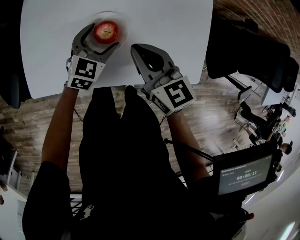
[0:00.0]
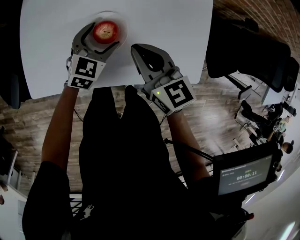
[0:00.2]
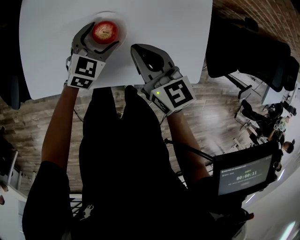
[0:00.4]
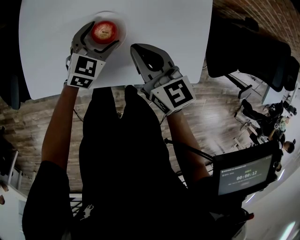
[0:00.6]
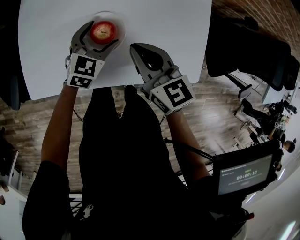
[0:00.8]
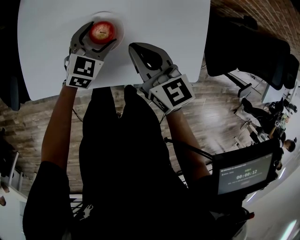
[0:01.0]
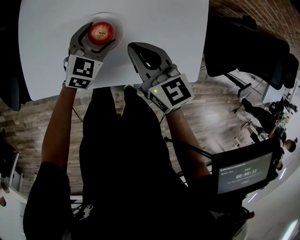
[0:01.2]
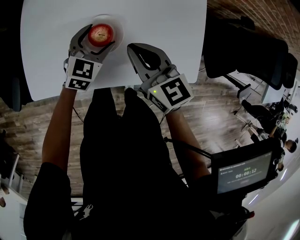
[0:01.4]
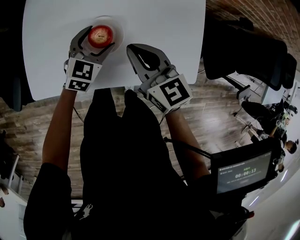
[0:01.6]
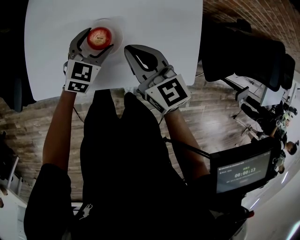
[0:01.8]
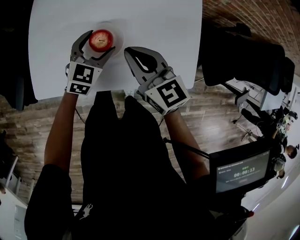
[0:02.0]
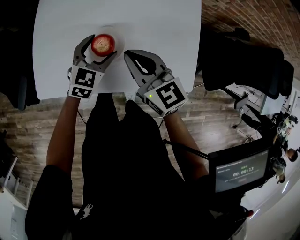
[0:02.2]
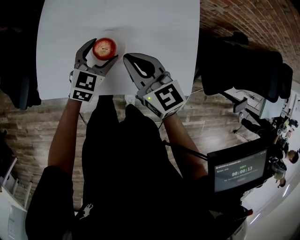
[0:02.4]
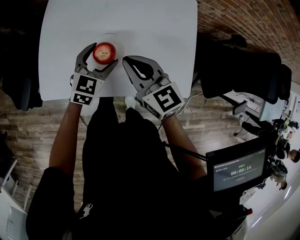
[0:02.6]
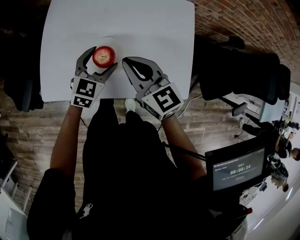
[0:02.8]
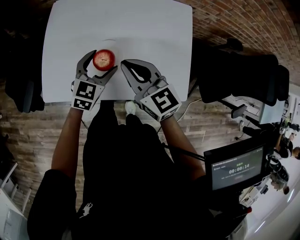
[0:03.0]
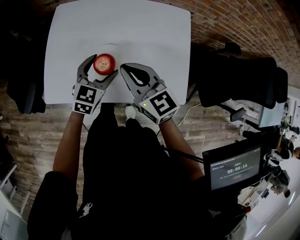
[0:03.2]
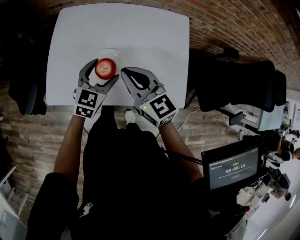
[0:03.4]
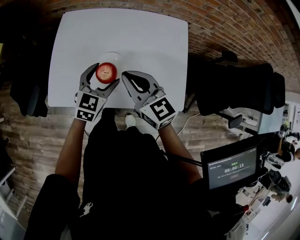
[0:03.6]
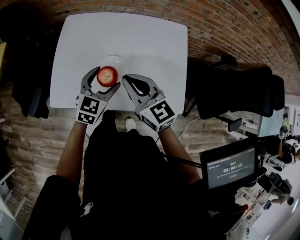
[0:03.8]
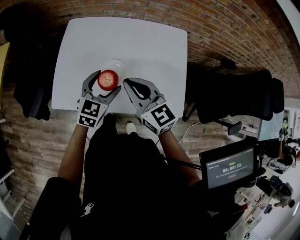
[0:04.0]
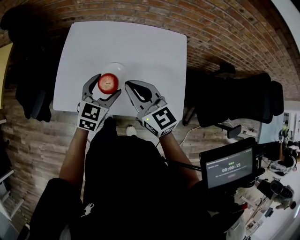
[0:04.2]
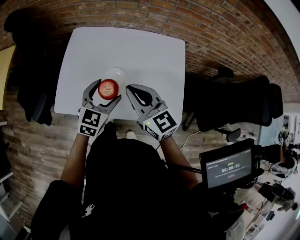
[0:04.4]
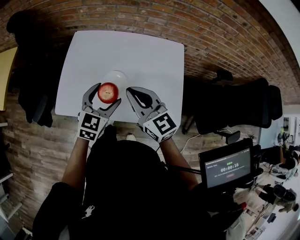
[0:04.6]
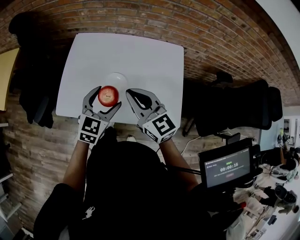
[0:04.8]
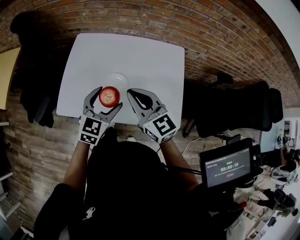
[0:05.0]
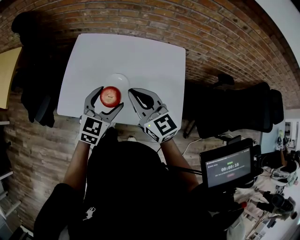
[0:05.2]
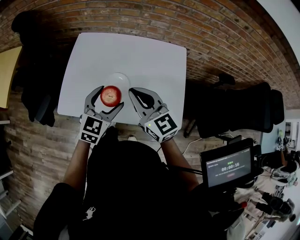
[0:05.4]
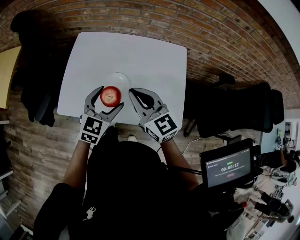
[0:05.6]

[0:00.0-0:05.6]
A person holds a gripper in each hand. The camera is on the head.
0.0 to 1.4 s: Both grippers stay about where they are.
1.4 to 2.8 s: The grippers both shift upward by about 10 cm.
2.8 to 4.2 s: The right gripper moves upward, about 5 cm. The left gripper goes approximately 10 cm upward and backward.
4.2 to 5.6 s: The grippers make only small movements.

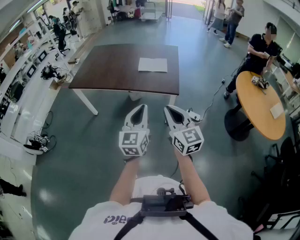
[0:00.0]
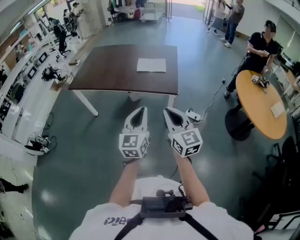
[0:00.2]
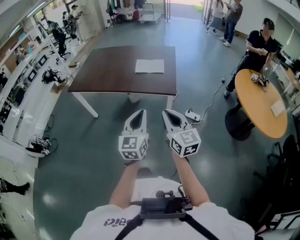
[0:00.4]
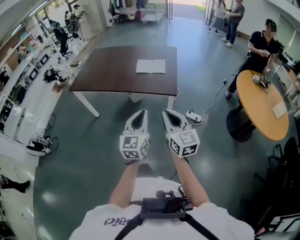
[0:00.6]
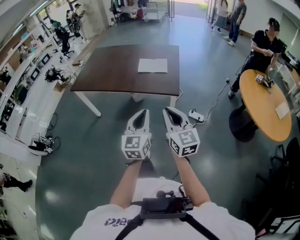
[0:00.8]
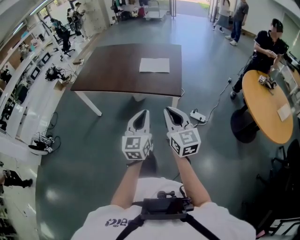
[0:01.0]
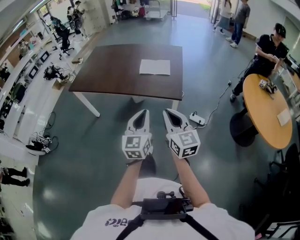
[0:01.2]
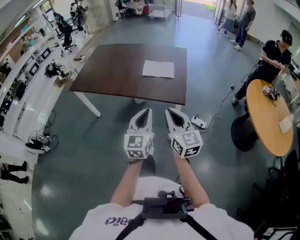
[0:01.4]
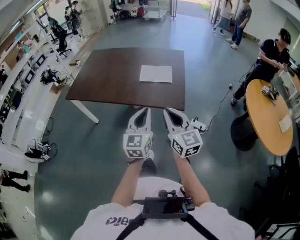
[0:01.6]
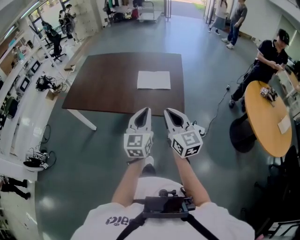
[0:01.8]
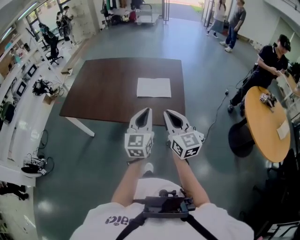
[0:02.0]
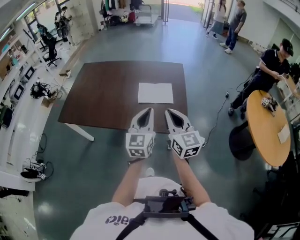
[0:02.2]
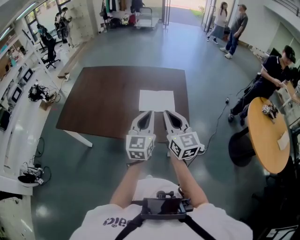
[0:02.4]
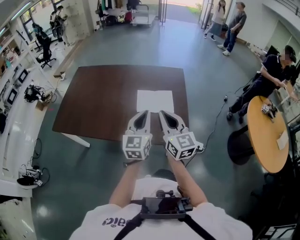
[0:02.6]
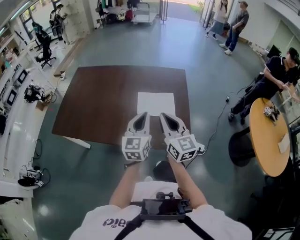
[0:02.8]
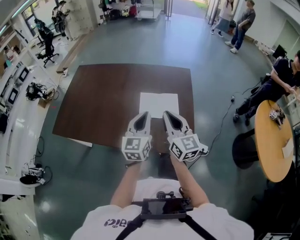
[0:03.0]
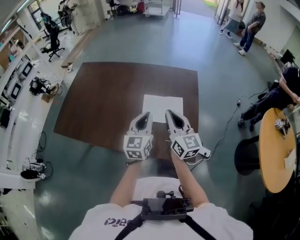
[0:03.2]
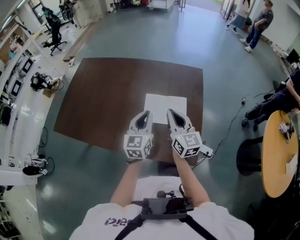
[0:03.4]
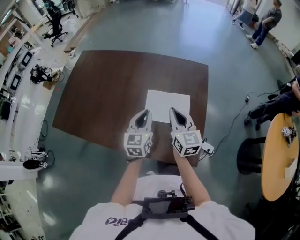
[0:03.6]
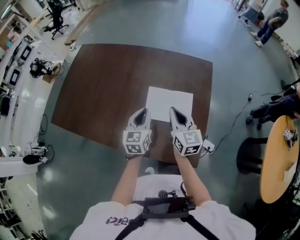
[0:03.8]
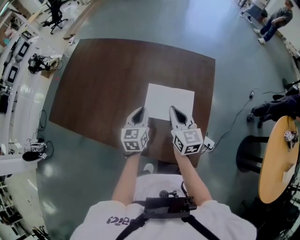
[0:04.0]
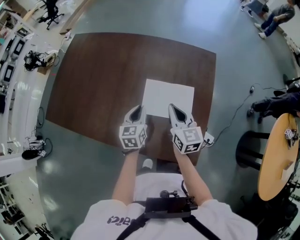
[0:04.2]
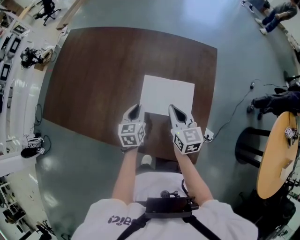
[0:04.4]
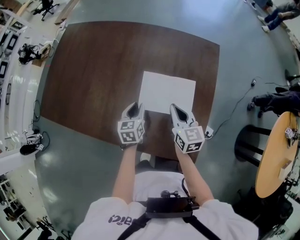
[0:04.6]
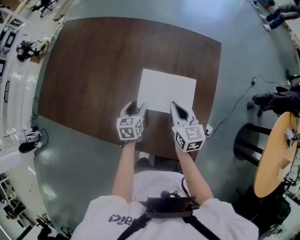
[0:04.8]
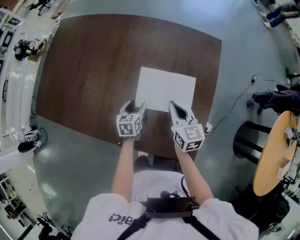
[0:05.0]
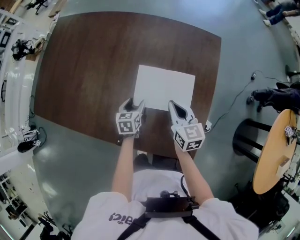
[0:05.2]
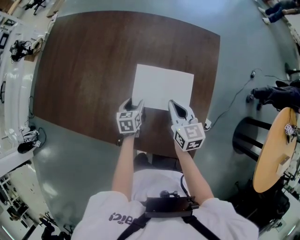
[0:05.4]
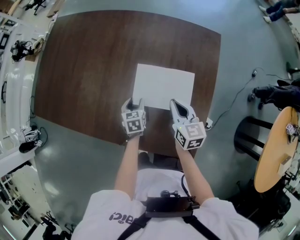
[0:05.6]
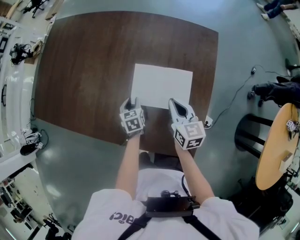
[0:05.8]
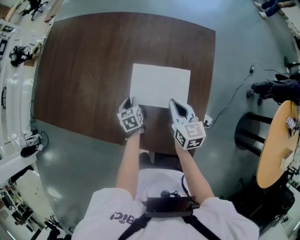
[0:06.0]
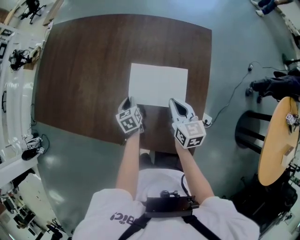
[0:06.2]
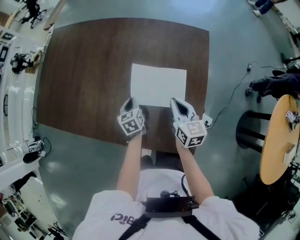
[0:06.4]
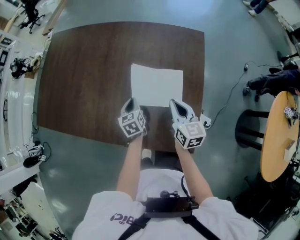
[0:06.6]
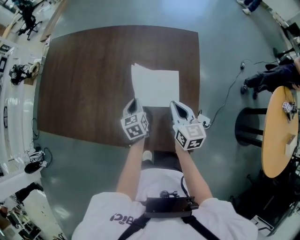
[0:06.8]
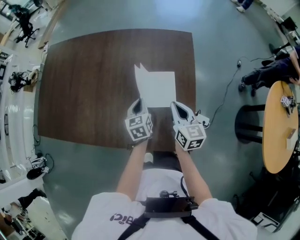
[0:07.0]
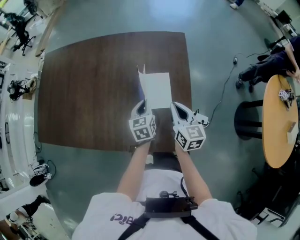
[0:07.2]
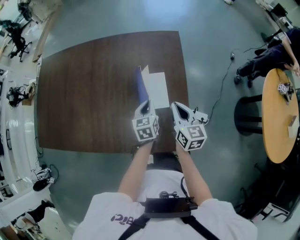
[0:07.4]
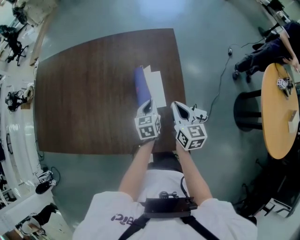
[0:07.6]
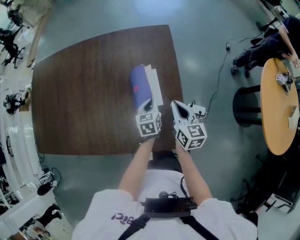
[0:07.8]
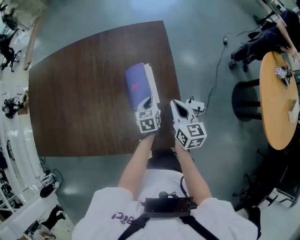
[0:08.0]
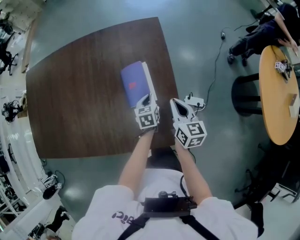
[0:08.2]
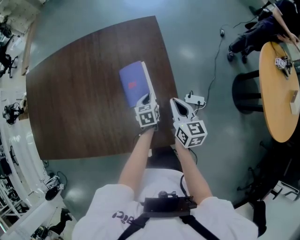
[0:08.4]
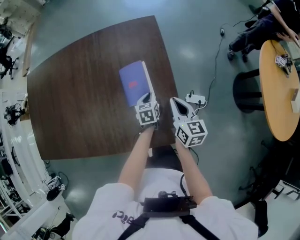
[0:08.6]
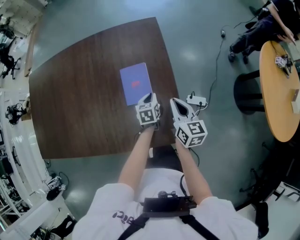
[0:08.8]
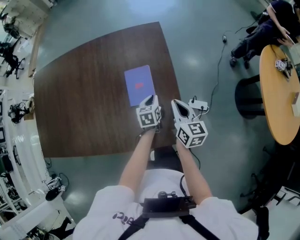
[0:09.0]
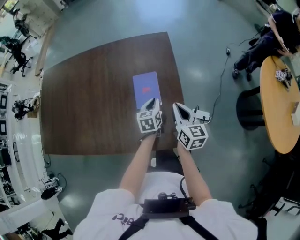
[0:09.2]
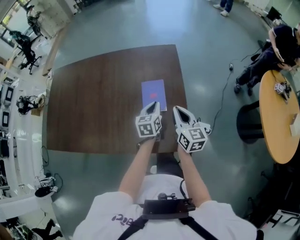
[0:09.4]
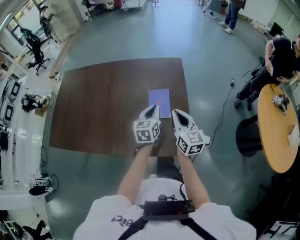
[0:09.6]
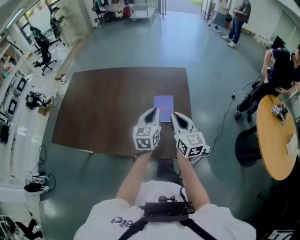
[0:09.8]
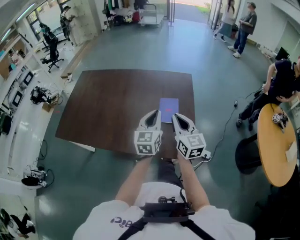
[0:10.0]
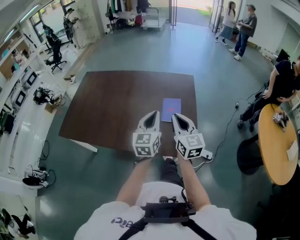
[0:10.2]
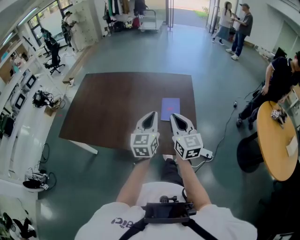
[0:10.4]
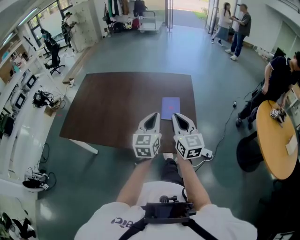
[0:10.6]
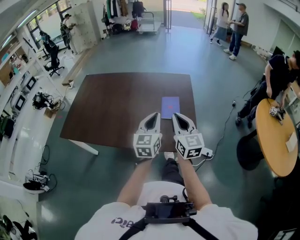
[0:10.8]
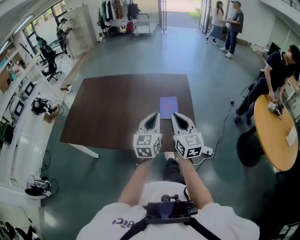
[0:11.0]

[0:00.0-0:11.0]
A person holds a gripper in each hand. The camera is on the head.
0.0 to 1.6 s: The two grippers go approximately 15 cm forward.
1.6 to 3.2 s: The two grippers go some 40 cm forward.
3.2 to 4.8 s: The right gripper travels downward and forward by approximately 20 cm, and turns by some 30 degrees, while the left gripper moves downward, about 25 cm, angles its fingers downward, by about 30 degrees, and opens up.
4.8 to 6.2 s: The left gripper shifts about 5 cm downward, and closes its fingers.
6.2 to 7.8 s: The right gripper moves about 15 cm; the left gripper ends up approximately 25 cm from where it was, and rotates roughly 30 degrees.
7.8 to 9.4 s: Both grippers move upward, approximately 5 cm.
9.4 to 11.0 s: The grippers both shift upward, backward and to the left by roughly 25 cm. The left gripper changes its angle by about 30 degrees; the right gripper turns by some 20 degrees.

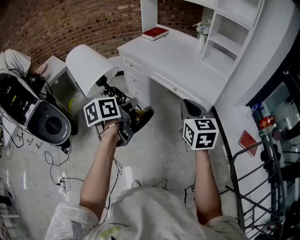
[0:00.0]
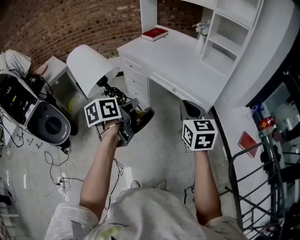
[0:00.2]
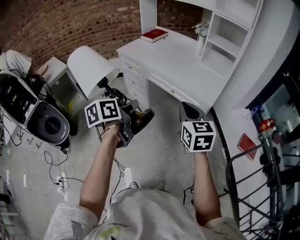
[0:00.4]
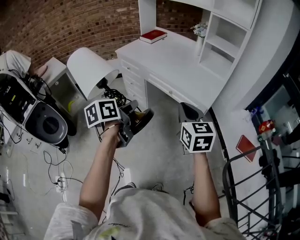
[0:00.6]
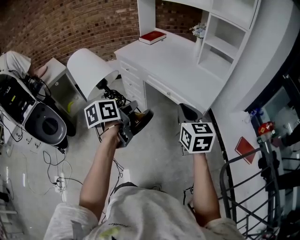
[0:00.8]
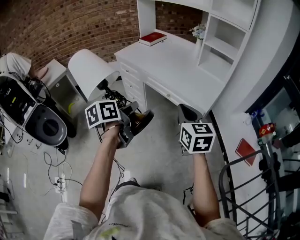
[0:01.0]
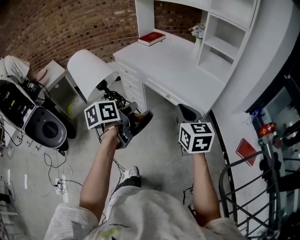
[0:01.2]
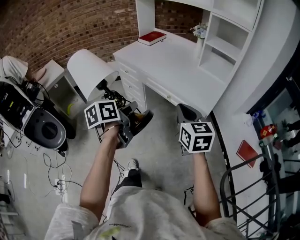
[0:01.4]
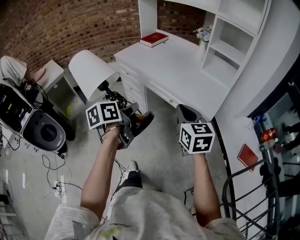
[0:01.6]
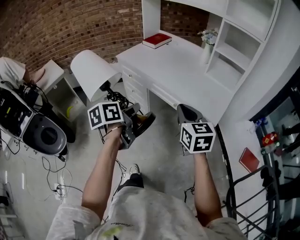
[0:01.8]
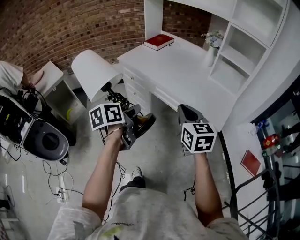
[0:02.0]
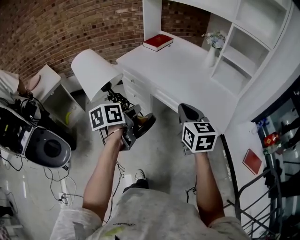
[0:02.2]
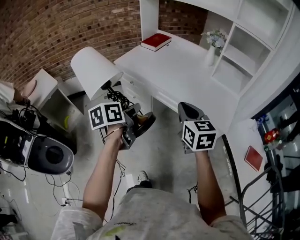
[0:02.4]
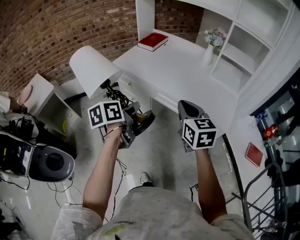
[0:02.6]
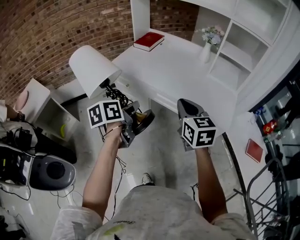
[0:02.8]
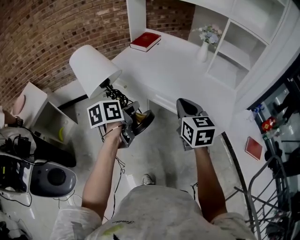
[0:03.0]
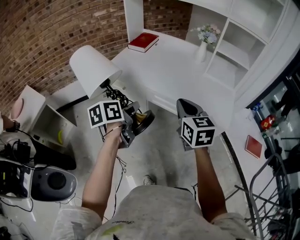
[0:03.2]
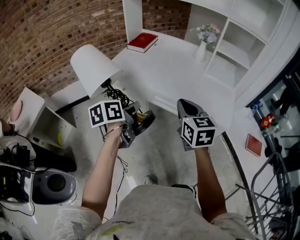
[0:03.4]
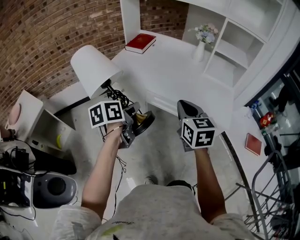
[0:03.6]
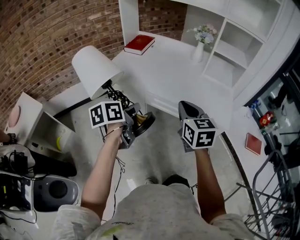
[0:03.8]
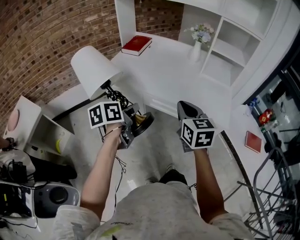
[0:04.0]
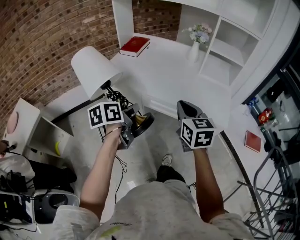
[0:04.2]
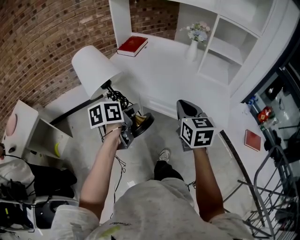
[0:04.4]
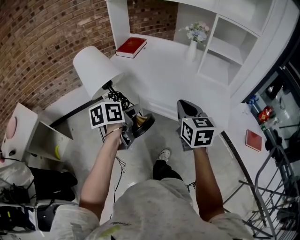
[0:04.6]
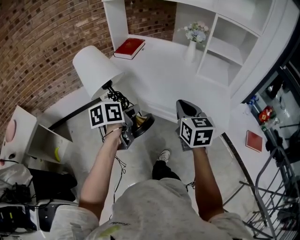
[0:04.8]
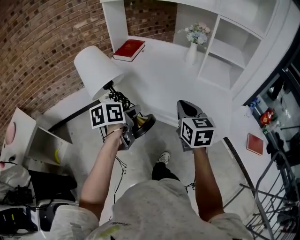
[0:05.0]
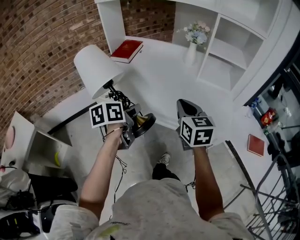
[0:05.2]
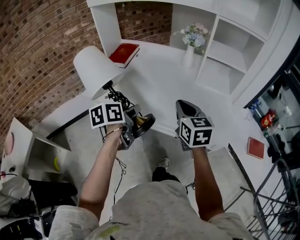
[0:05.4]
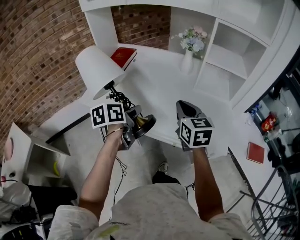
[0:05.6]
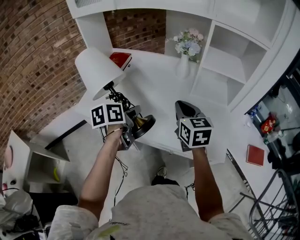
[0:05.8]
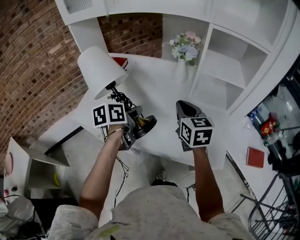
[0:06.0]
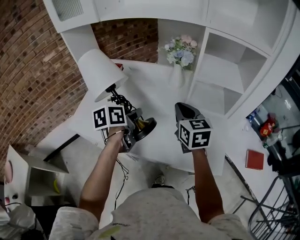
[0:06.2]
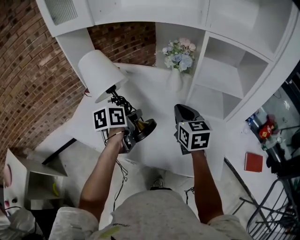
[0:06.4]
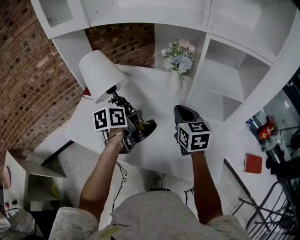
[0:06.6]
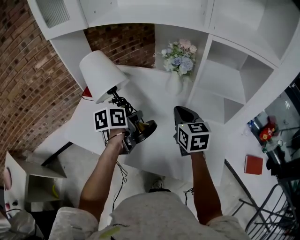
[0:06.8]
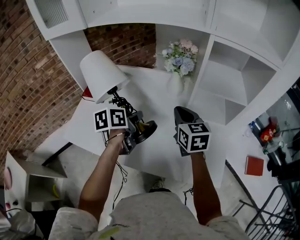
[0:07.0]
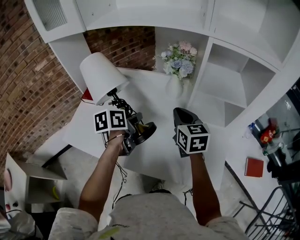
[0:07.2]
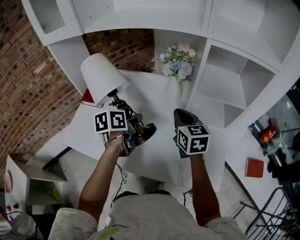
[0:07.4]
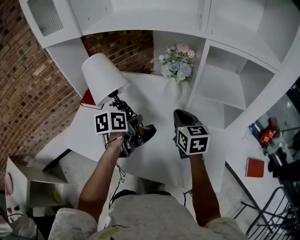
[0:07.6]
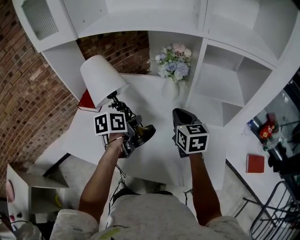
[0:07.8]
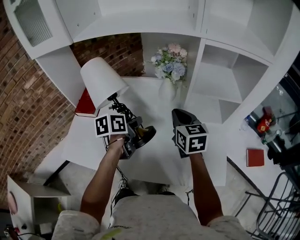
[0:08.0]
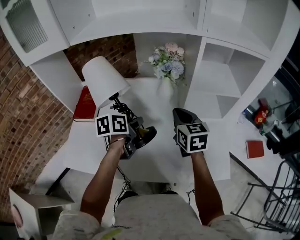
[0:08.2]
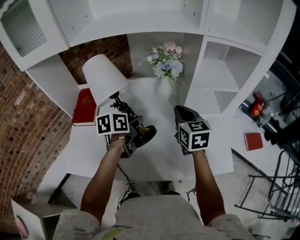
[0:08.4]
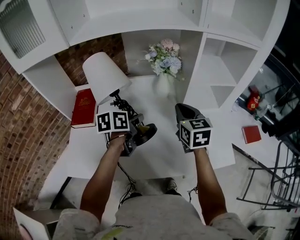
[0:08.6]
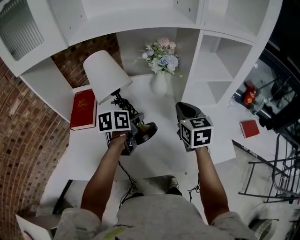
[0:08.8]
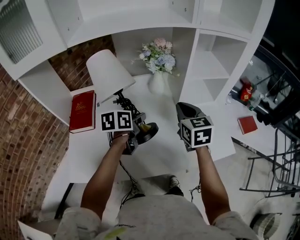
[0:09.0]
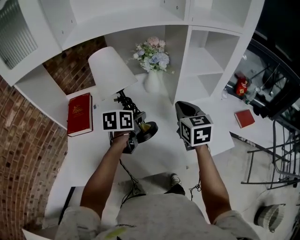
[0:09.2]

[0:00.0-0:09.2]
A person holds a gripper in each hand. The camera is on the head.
0.0 to 1.6 s: Both grippers travel together forward, some 10 cm.
1.6 to 3.0 s: Both grippers move forward and to the left, approximately 25 cm.
3.0 to 4.6 s: The right gripper changes place by some 5 cm; the left gripper goes approximately 5 cm forward.
4.6 to 6.2 s: The grippers both shift forward by approximately 30 cm.
6.2 to 7.6 s: Both grippers move forward, roughly 10 cm.
7.6 to 9.2 s: The left gripper changes its angle by approximately 30 degrees, while the right gripper changes place by some 5 cm, and swivels roughly 30 degrees.
